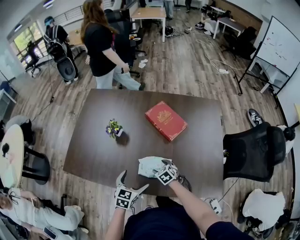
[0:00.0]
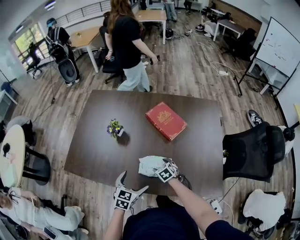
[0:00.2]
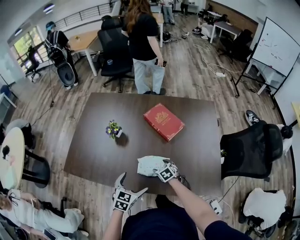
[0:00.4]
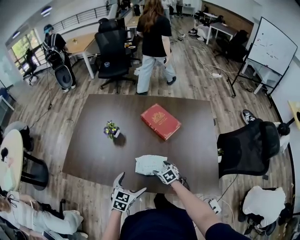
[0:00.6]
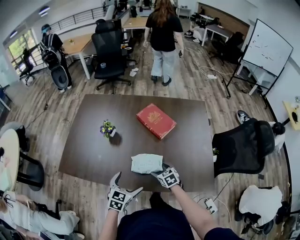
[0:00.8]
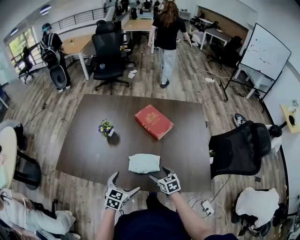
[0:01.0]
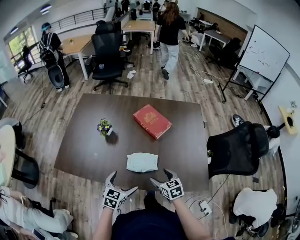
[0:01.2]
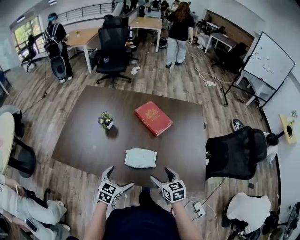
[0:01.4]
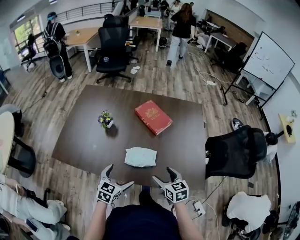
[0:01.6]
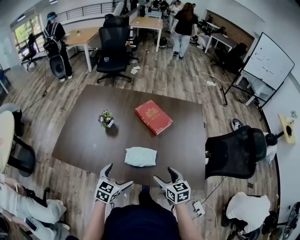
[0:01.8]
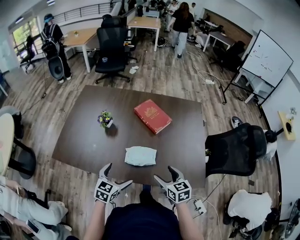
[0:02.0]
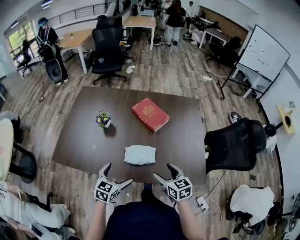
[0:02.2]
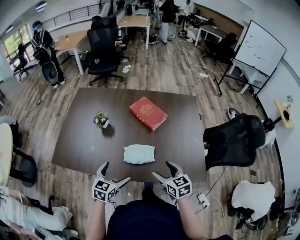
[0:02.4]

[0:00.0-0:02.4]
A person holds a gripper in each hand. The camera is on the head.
0:00.0 to 0:01.2: The left gripper heads backward, covering some 10 cm, while the right gripper heads upward, backward and to the right, covering some 20 cm, and turns by about 30 degrees.
0:01.2 to 0:02.4: The right gripper moves upward, about 10 cm.

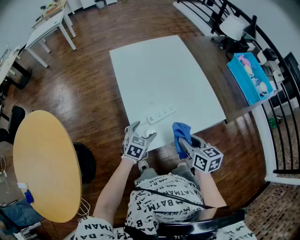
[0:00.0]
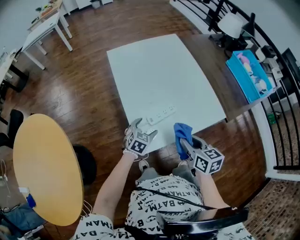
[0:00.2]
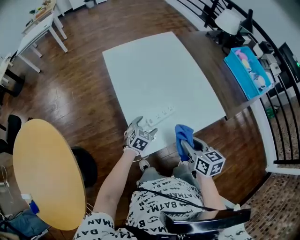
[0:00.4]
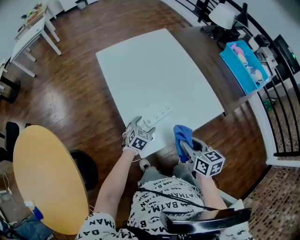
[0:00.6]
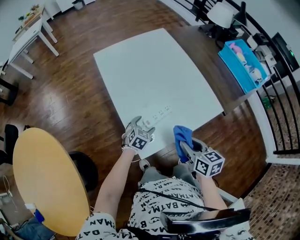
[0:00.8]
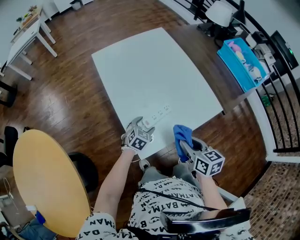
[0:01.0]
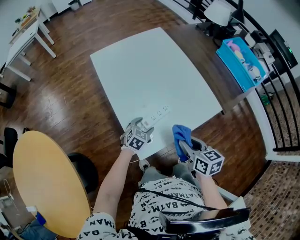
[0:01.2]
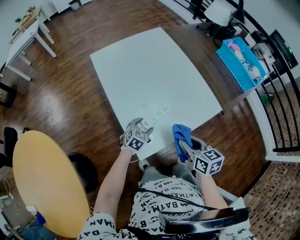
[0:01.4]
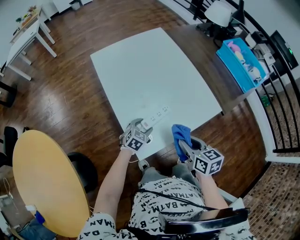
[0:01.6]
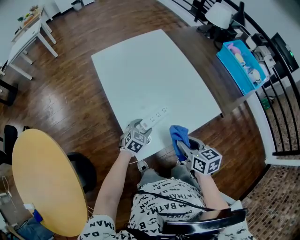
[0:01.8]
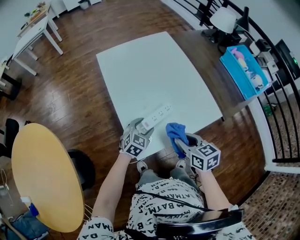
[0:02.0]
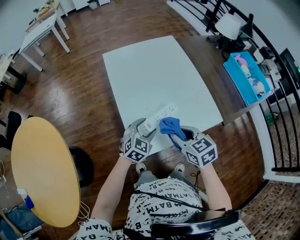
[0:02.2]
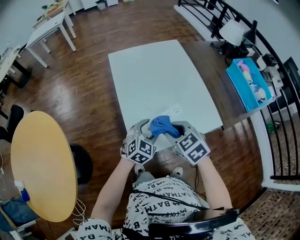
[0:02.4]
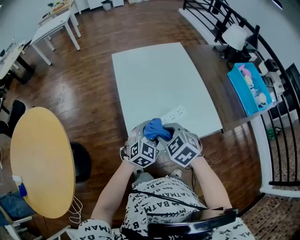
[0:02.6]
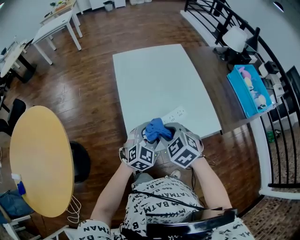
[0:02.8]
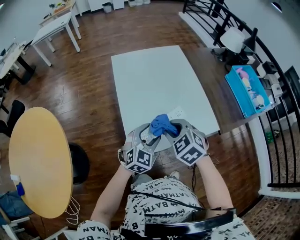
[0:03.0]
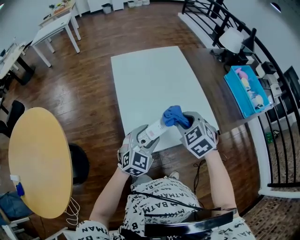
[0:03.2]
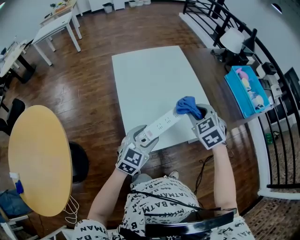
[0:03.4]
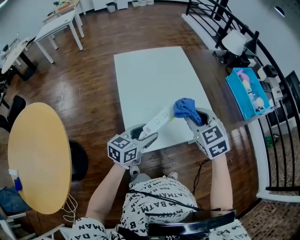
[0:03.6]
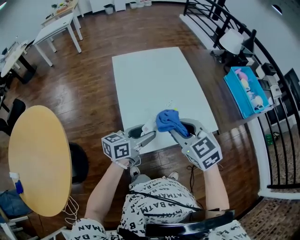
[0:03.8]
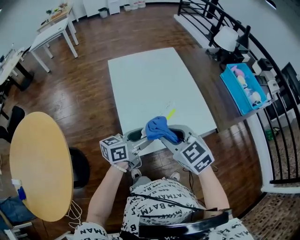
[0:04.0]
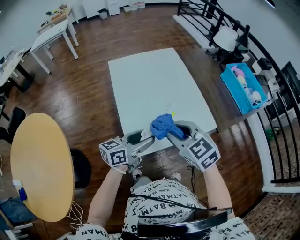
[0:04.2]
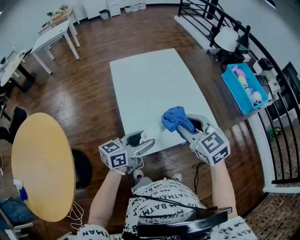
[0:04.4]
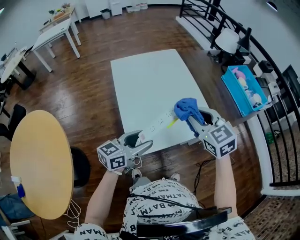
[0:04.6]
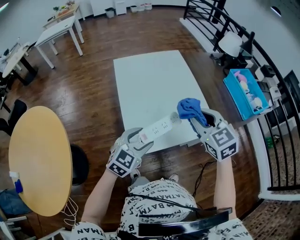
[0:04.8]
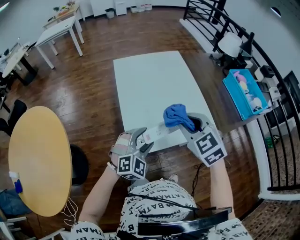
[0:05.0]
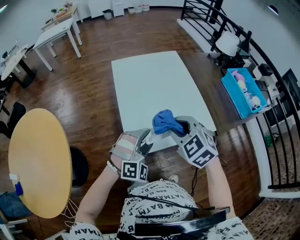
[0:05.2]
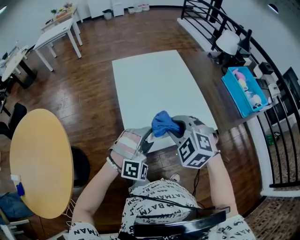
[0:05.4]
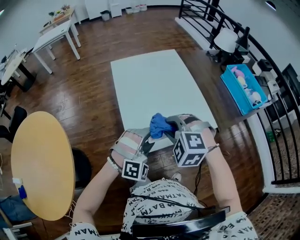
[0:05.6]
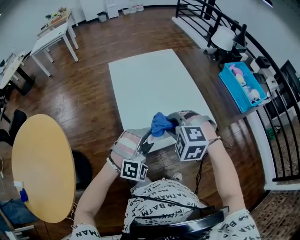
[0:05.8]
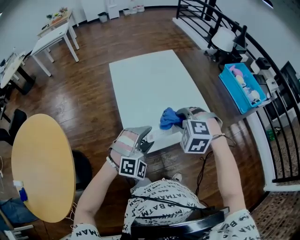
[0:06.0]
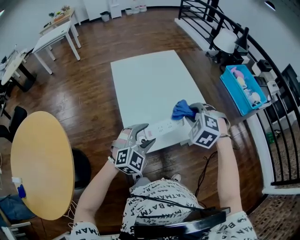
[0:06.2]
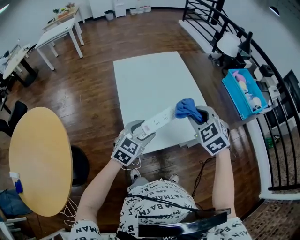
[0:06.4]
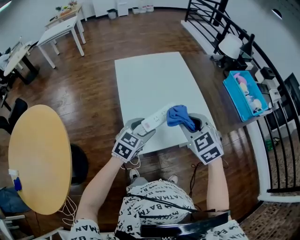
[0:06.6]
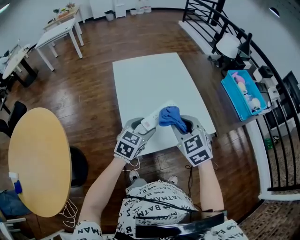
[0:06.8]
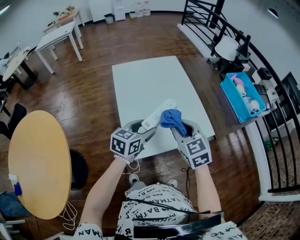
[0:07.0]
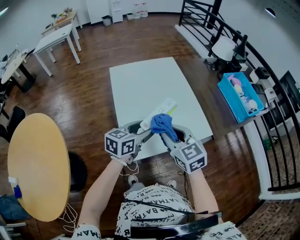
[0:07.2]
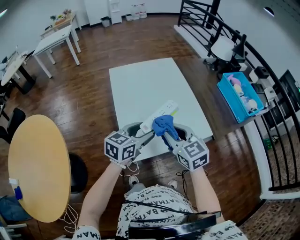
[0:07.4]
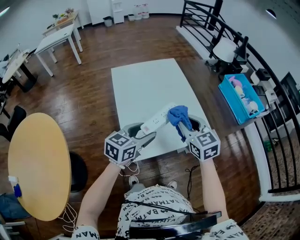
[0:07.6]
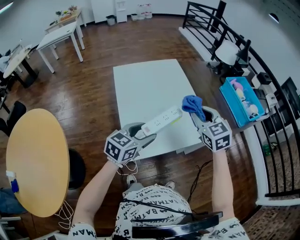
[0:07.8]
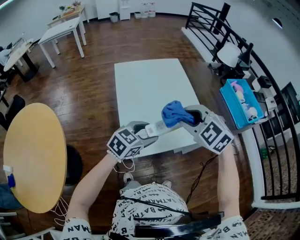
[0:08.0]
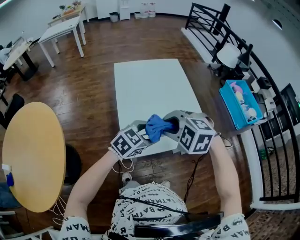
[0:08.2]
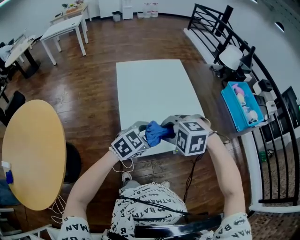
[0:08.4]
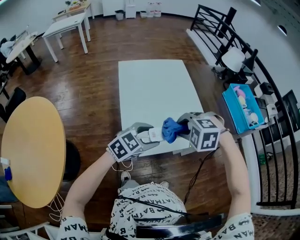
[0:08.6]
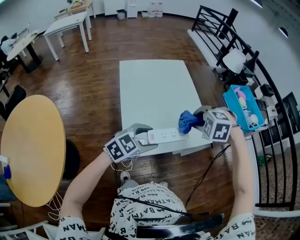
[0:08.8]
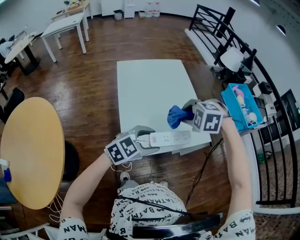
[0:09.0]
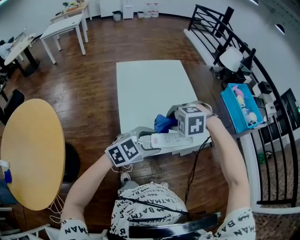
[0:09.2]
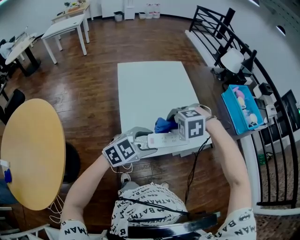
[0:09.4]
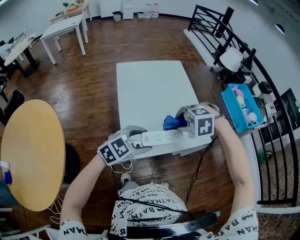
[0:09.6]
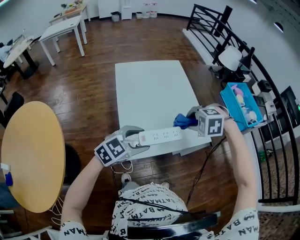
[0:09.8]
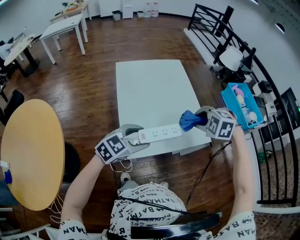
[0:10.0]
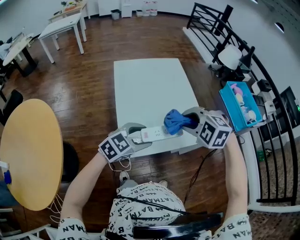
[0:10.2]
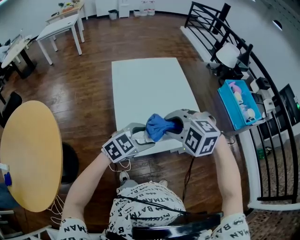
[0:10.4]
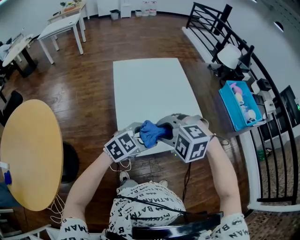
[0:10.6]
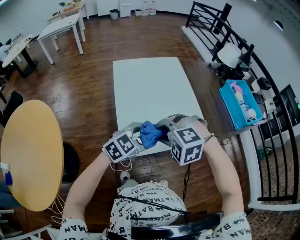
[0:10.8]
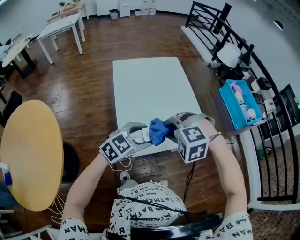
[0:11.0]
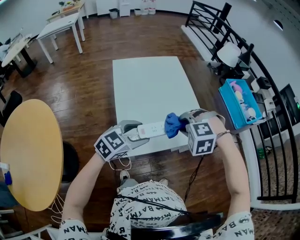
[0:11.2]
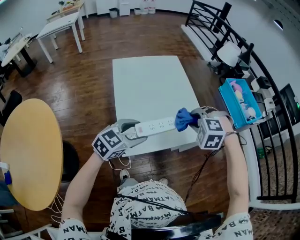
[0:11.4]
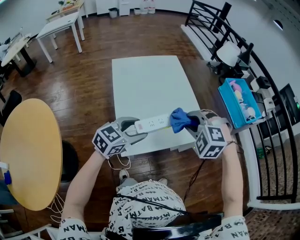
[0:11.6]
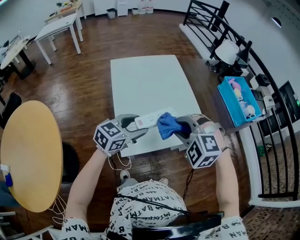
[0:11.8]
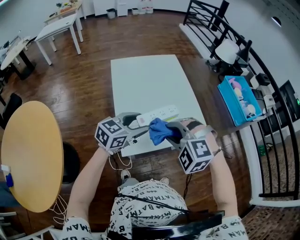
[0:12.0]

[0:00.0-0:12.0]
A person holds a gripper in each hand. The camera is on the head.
0:00.0 to 0:01.6: The left gripper heads downward and forward, covering about 10 cm.
0:01.6 to 0:03.0: The left gripper travels upward by approximately 20 cm, and swivels roughly 30 degrees, while the right gripper shifts approximately 10 cm upward, to the left and forward, and rolls counterclockwise, seen from behind, by roughly 60 degrees.
0:03.0 to 0:04.4: The right gripper moves forward and backward over some 10 cm, changing direction 2 times, and turns by approximately 20 degrees. The left gripper ends up some 5 cm from where it was, and rolls counterclockwise, seen from behind, by roughly 50 degrees.
0:04.4 to 0:06.0: The left gripper rotates around the line of its fingers by about 90 degrees, clockwise from behind; the right gripper moves left and right over about 10 cm, changing direction 2 times, and rolls counterclockwise, seen from behind, by roughly 40 degrees.
0:06.0 to 0:07.6: The right gripper moves left and right over roughly 5 cm, changing direction 2 times, and rolls clockwise, seen from behind, by some 50 degrees; the left gripper travels forward by some 5 cm, and rotates around the line of its fingers by some 70 degrees, counterclockwise from behind.
0:07.6 to 0:09.0: The left gripper travels backward by about 5 cm, and changes its angle by about 30 degrees; the right gripper moves left and right over some 15 cm, changing direction 3 times, and angles its fingers downward, by roughly 50 degrees.
0:09.0 to 0:10.4: The right gripper moves roughly 10 cm.
0:10.4 to 0:12.0: The right gripper reaches approximately 10 cm to the right, then returns. The left gripper ends up about 5 cm from where it was, and changes its angle by about 20 degrees.

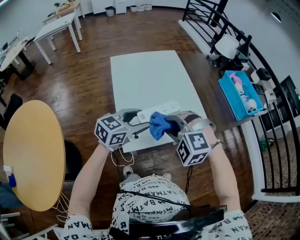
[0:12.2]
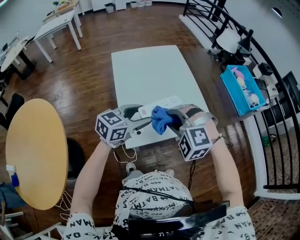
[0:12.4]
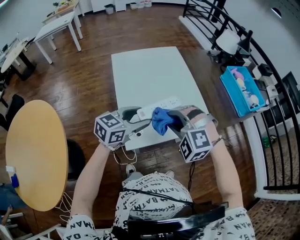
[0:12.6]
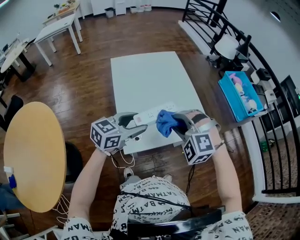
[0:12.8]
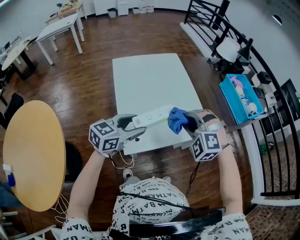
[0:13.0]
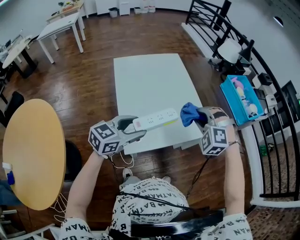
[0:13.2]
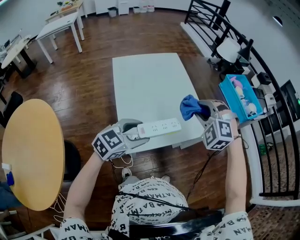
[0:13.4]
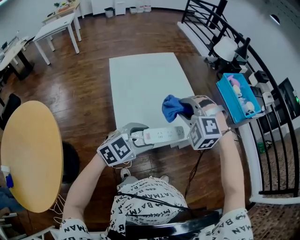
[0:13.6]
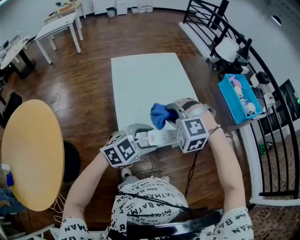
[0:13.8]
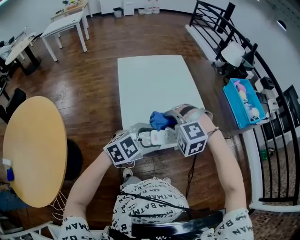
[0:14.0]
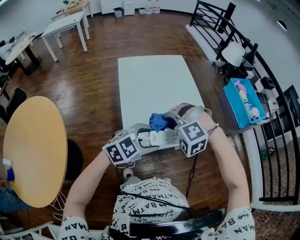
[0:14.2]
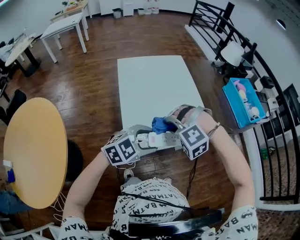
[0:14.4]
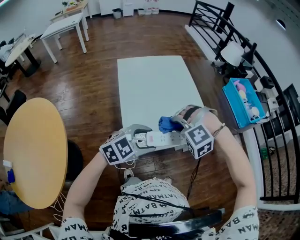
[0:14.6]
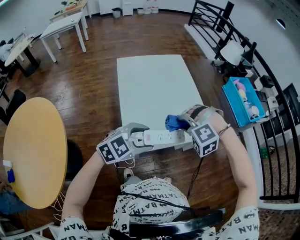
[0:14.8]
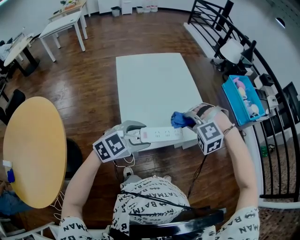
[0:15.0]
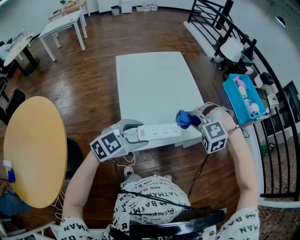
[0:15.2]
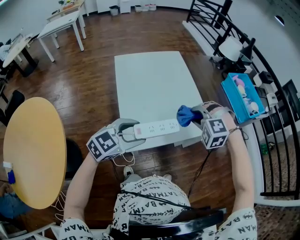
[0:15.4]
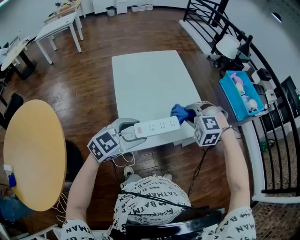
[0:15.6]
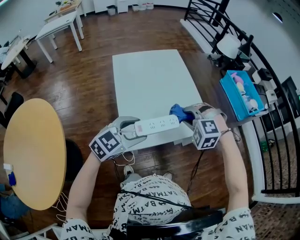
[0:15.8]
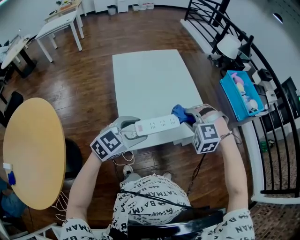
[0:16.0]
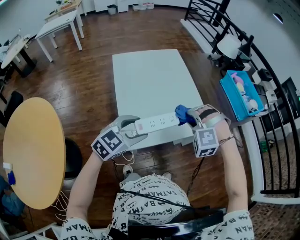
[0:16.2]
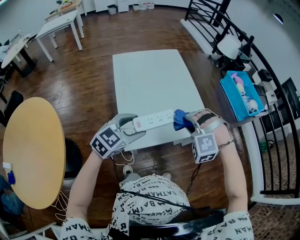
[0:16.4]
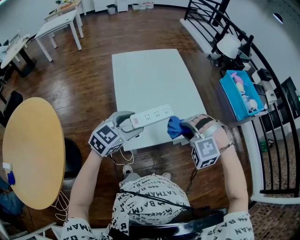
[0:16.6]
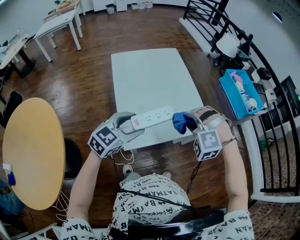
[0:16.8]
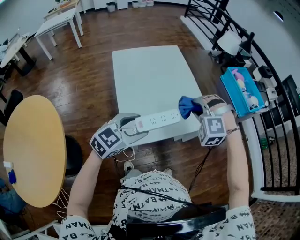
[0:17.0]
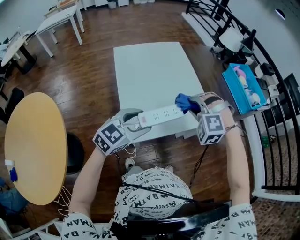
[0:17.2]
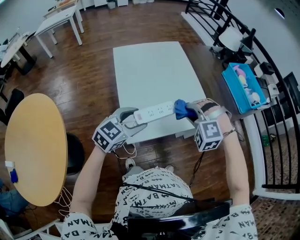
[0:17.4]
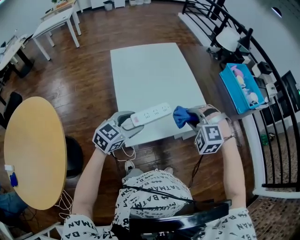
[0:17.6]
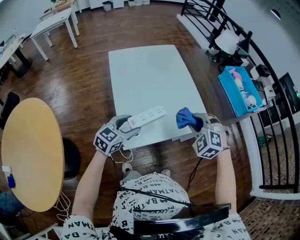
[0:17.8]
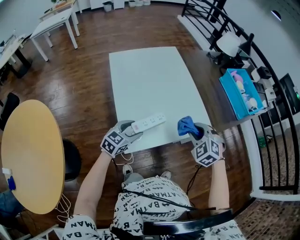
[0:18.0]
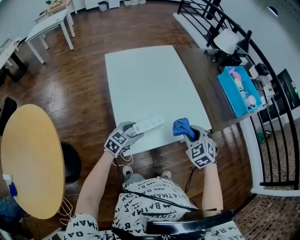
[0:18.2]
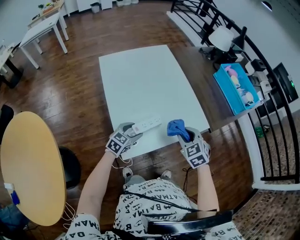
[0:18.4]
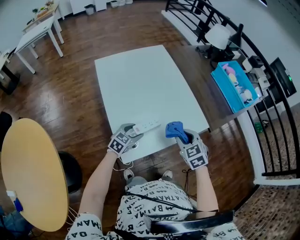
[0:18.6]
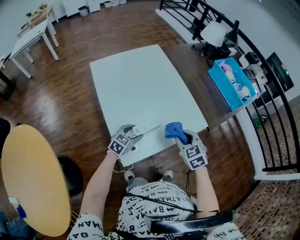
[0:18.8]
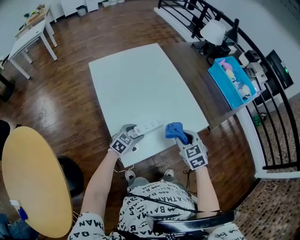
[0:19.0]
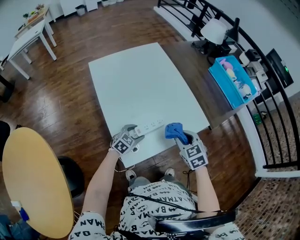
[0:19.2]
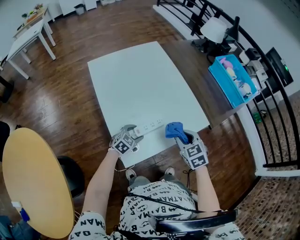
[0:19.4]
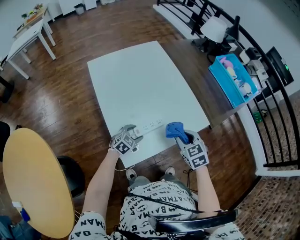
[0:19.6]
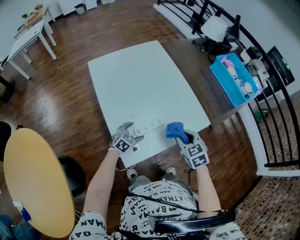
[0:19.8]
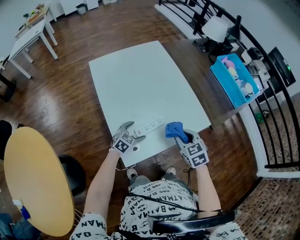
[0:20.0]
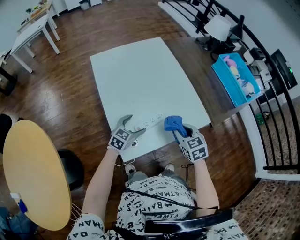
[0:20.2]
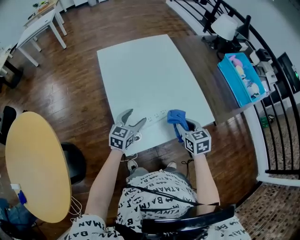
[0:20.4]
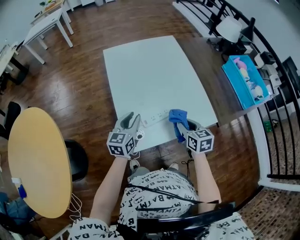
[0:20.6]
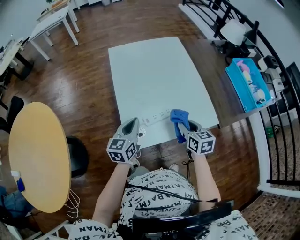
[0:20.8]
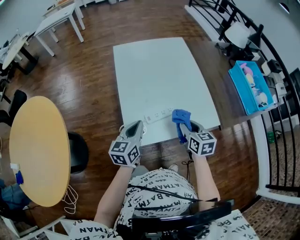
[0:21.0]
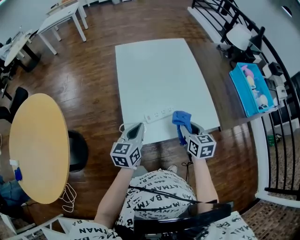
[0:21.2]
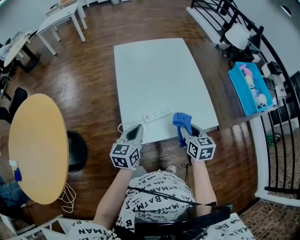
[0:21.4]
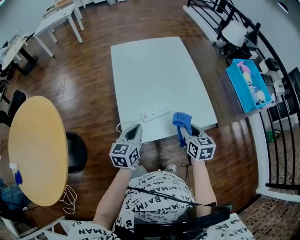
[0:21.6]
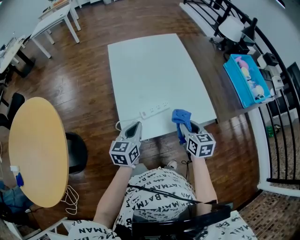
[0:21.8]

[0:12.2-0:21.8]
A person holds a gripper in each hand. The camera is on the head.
0:12.2 to 0:13.8: The left gripper goes some 10 cm to the right and backward, and rotates approximately 30 degrees, while the right gripper goes to the right and returns, roughly 10 cm each way.
0:13.8 to 0:15.4: The left gripper travels to the left by some 5 cm. The right gripper goes approximately 10 cm to the right.
0:15.4 to 0:17.0: The right gripper moves some 10 cm backward and comes back.
0:17.0 to 0:18.6: The left gripper shifts some 25 cm downward and forward, while the right gripper is displaced downward by approximately 10 cm, and rotates around the line of its fingers by roughly 70 degrees, clockwise from behind.
0:20.2 to 0:21.8: The left gripper shifts approximately 15 cm backward and upward, changes its angle by roughly 40 degrees, and closes its fingers.
